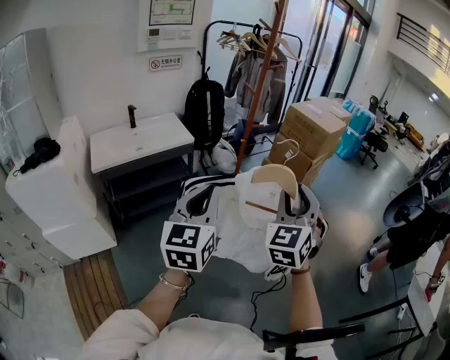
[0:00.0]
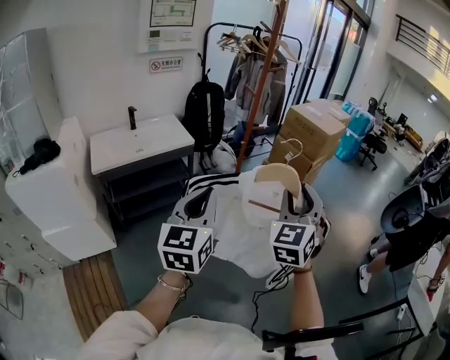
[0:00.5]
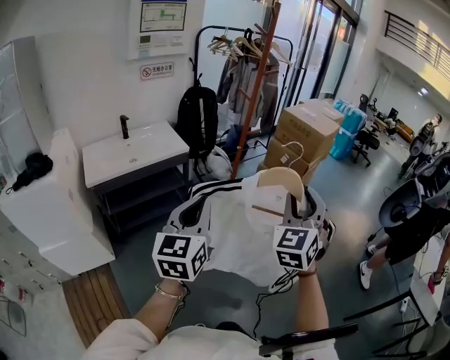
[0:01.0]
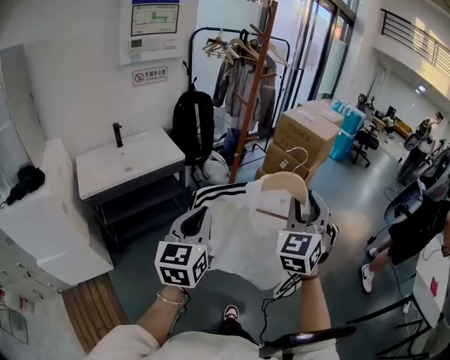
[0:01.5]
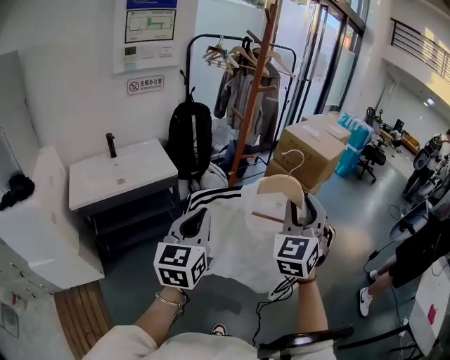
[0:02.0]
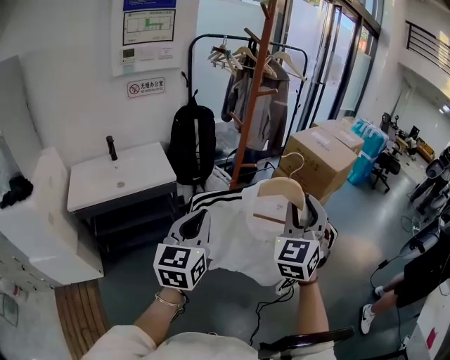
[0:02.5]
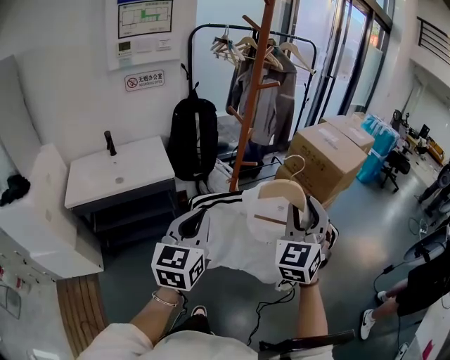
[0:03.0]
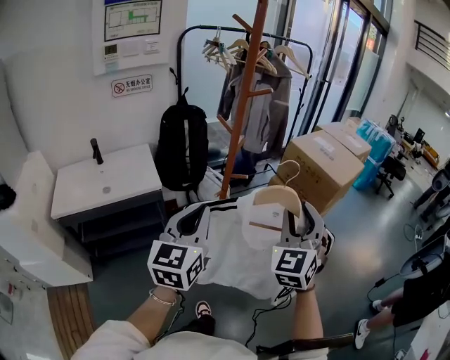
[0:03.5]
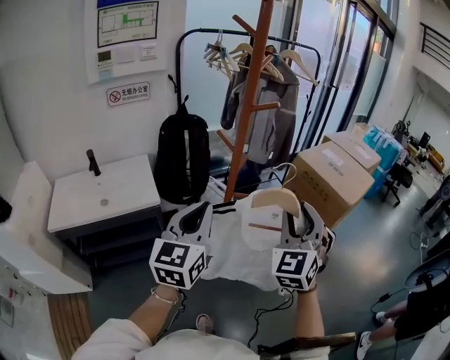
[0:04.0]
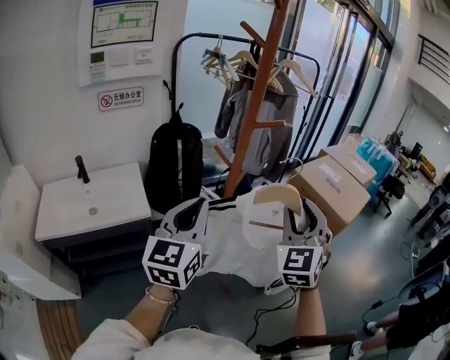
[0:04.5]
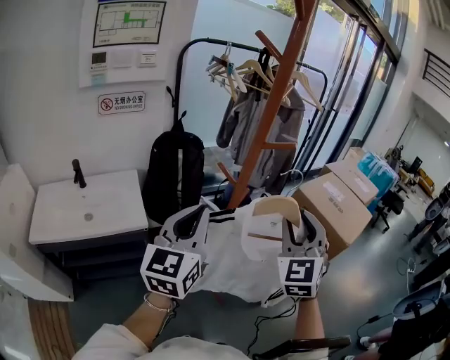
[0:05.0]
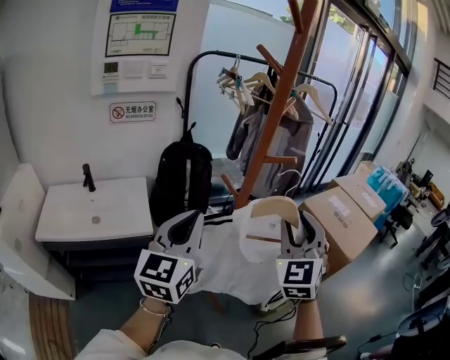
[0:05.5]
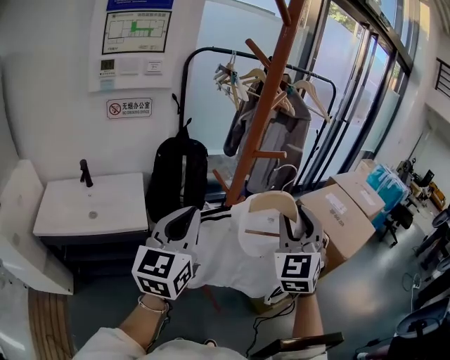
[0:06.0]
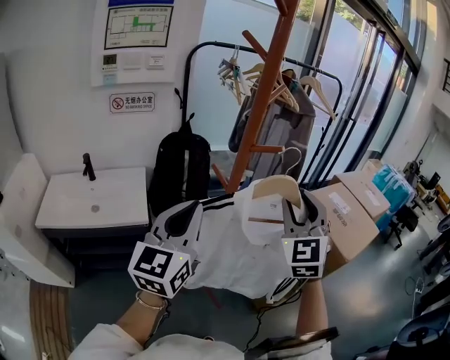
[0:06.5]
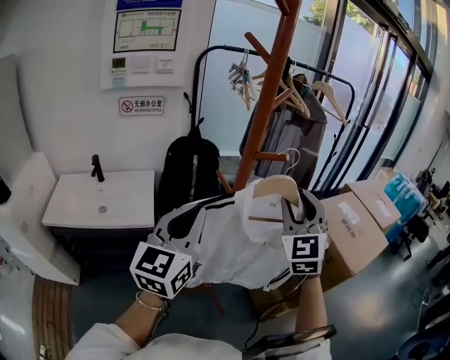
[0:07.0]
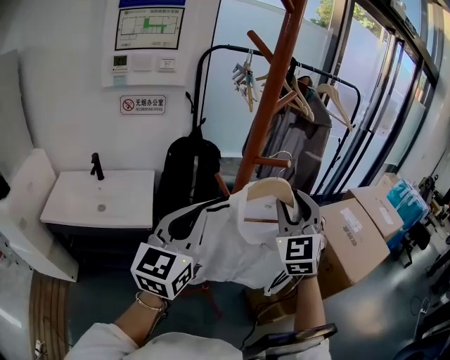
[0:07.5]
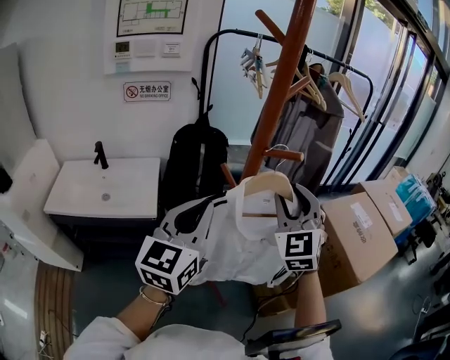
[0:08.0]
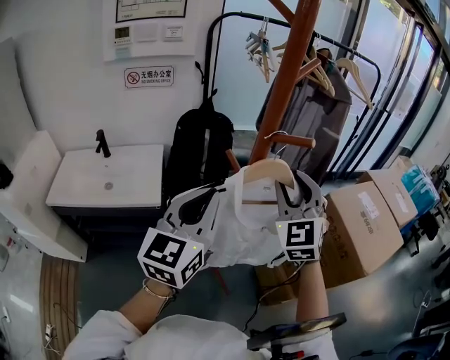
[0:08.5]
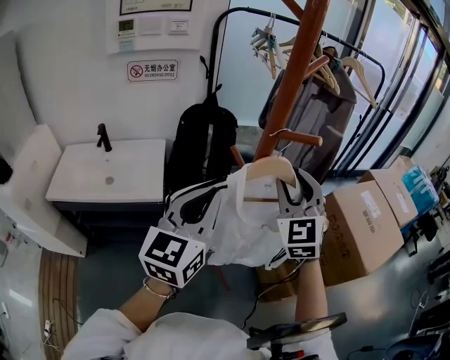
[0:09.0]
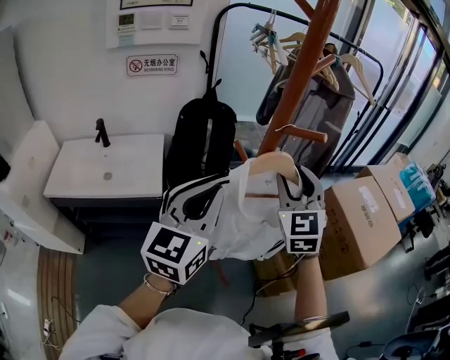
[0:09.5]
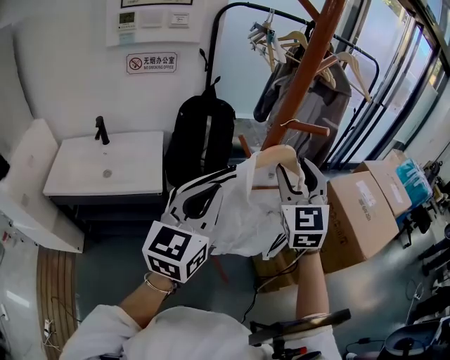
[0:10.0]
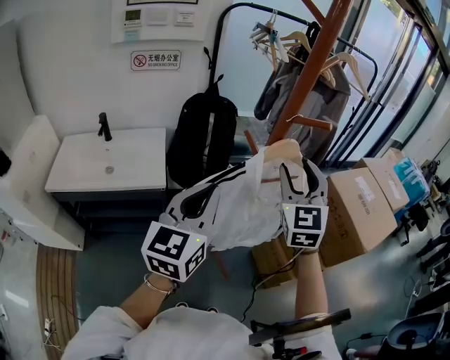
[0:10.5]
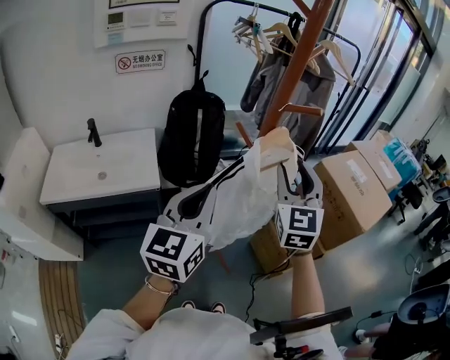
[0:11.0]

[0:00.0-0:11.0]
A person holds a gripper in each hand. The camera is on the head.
0:00.0 to 0:02.0: Both grippers travel together forward, some 20 cm.
0:02.0 to 0:03.5: The grippers both shift forward by approximately 20 cm.
0:03.5 to 0:05.5: Both grippers move forward, approximately 20 cm.
0:05.5 to 0:07.5: The left gripper shifts about 5 cm to the right. Meanwhile the right gripper moves forward, about 10 cm.
0:07.5 to 0:09.0: The right gripper is displaced to the left by about 5 cm.
0:09.0 to 0:11.0: The two grippers go roughly 5 cm backward.

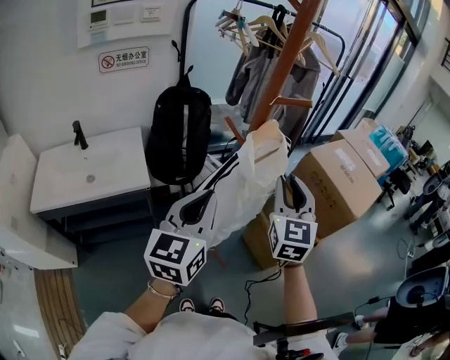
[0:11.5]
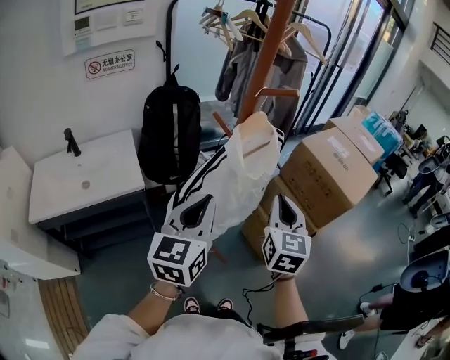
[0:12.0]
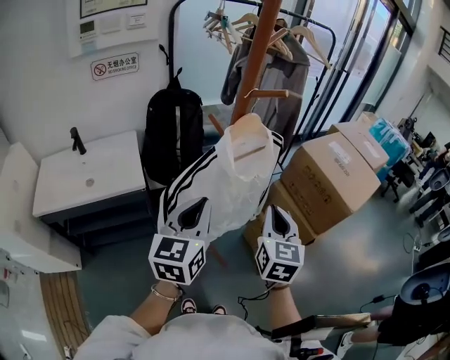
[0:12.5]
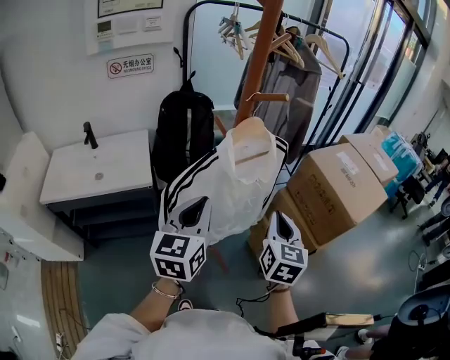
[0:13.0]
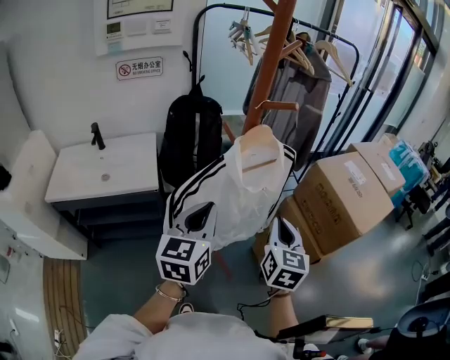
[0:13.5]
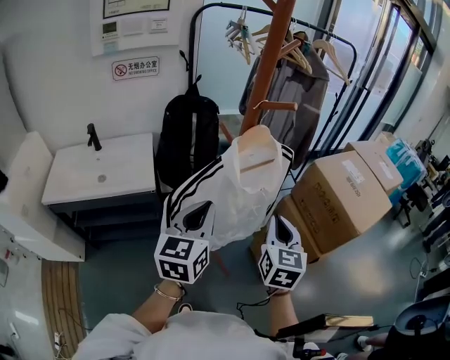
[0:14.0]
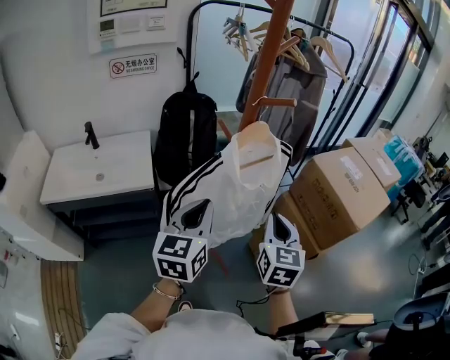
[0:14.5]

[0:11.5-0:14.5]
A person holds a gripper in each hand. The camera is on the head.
0:11.5 to 0:13.0: The left gripper changes place by some 5 cm; the right gripper moves downward and to the right, about 10 cm, and turns by roughly 20 degrees.
0:13.0 to 0:14.5: The grippers stay close to where they were, moving slightly.

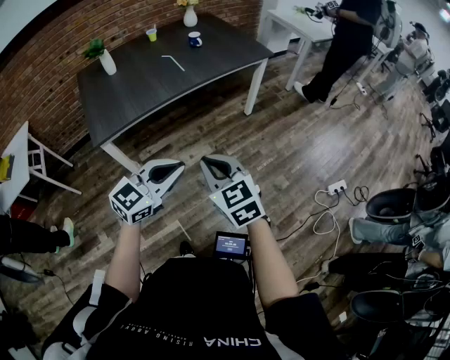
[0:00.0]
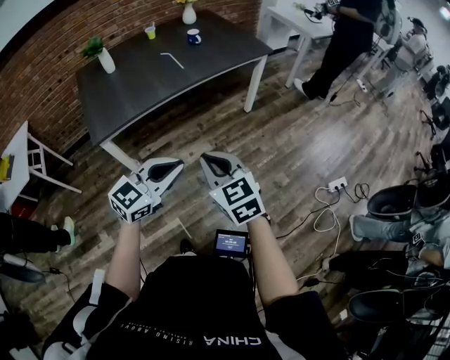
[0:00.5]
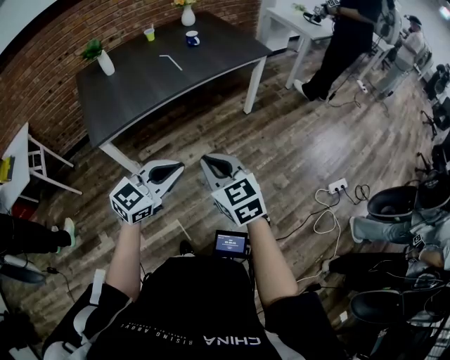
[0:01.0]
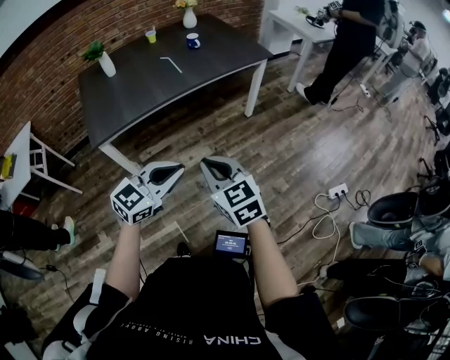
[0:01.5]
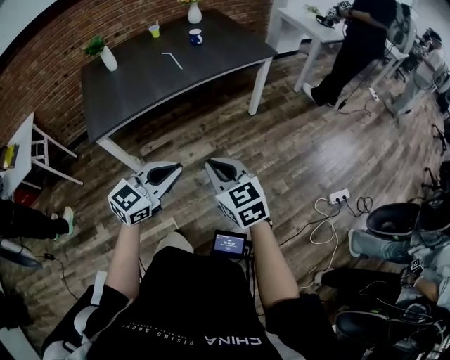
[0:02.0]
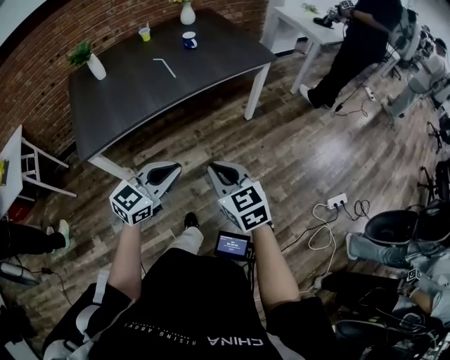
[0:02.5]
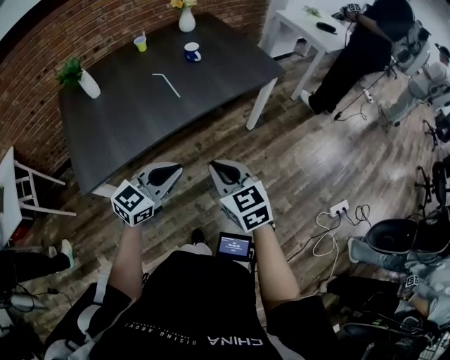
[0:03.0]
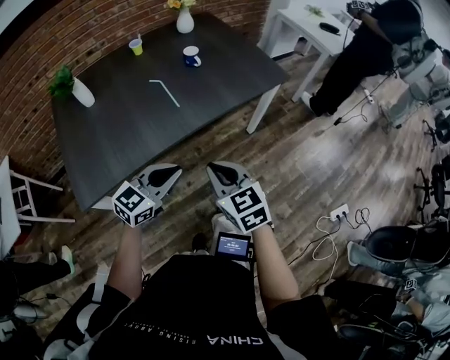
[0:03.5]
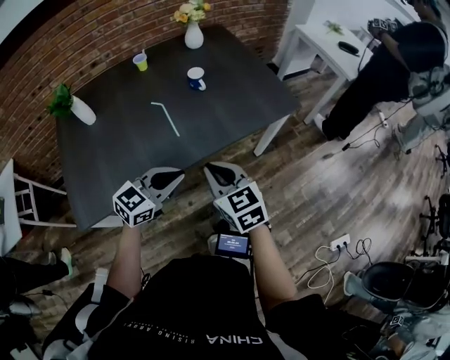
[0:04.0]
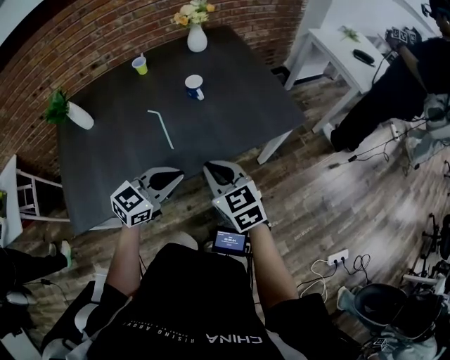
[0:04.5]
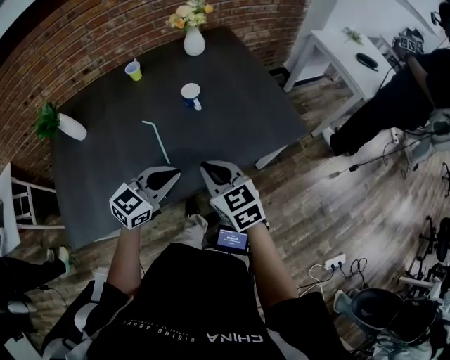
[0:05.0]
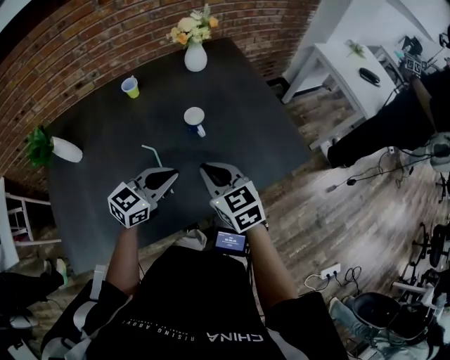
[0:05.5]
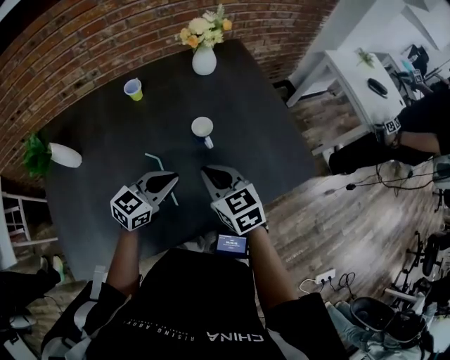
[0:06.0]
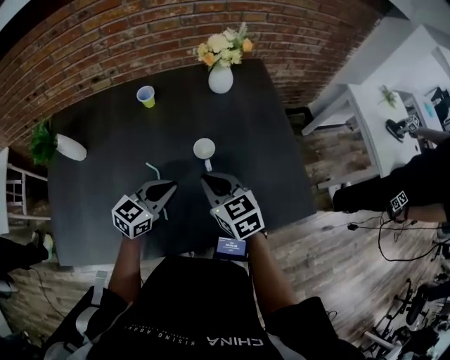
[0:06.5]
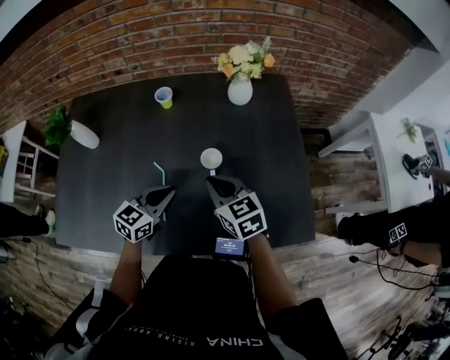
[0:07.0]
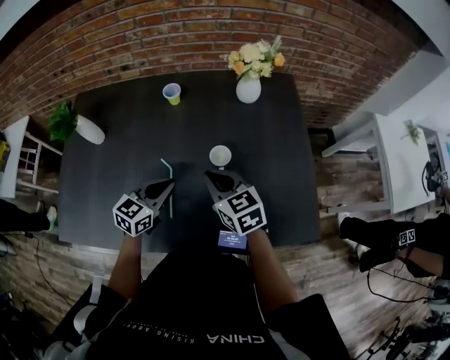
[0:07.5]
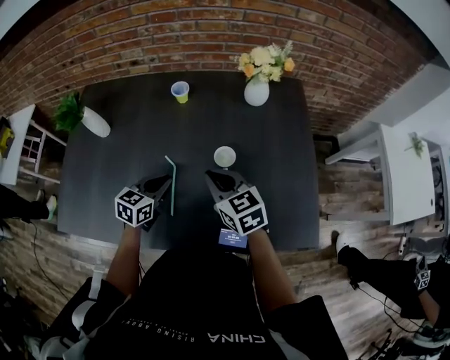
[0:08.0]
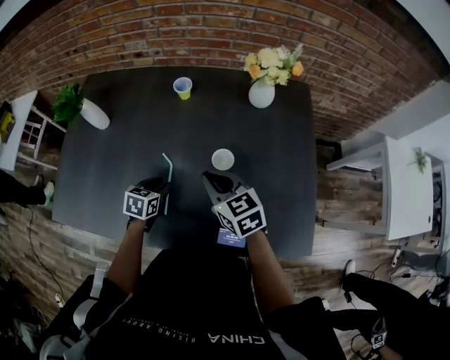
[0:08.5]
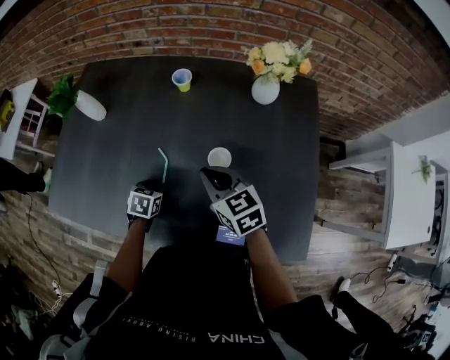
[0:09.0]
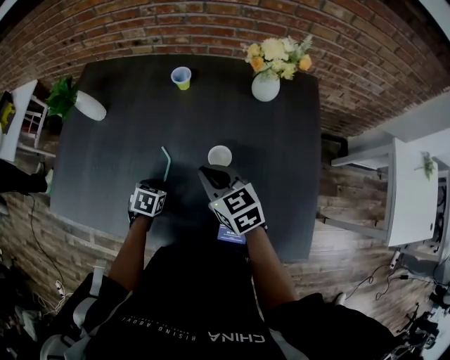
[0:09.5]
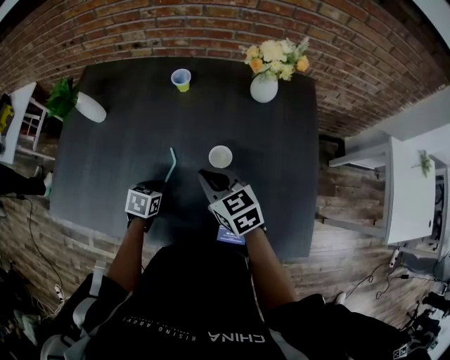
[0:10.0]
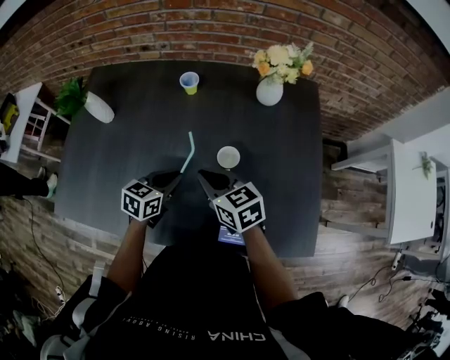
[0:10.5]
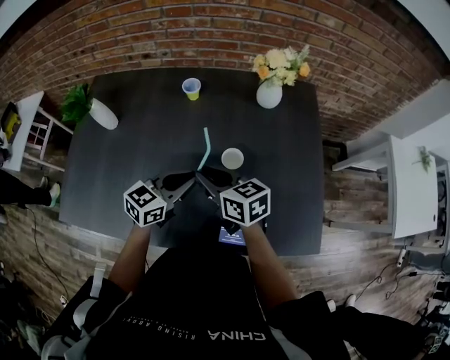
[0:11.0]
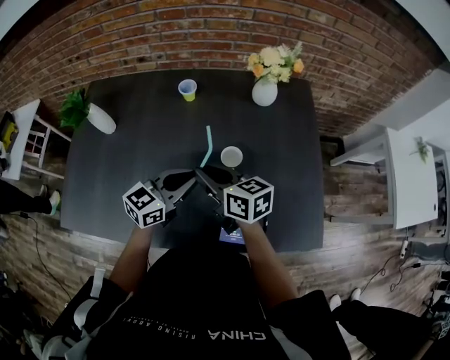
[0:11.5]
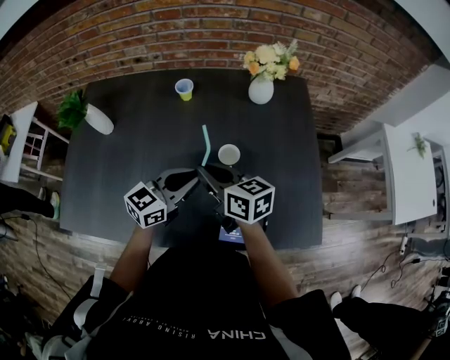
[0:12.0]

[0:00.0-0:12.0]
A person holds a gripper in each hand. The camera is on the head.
0:00.0 to 0:02.0: Both grippers move to the right, about 5 cm.
0:02.0 to 0:04.0: Both grippers are carried forward, about 50 cm.
0:04.0 to 0:06.0: The grippers both shift forward by approximately 30 cm.
0:06.0 to 0:08.0: The right gripper shifts by roughly 5 cm, and rotates approximately 20 degrees; the left gripper ends up roughly 10 cm from where it was, and turns by some 40 degrees.
0:08.0 to 0:10.0: The left gripper is displaced downward by roughly 10 cm, and swivels roughly 30 degrees.
0:10.0 to 0:12.0: The left gripper moves upward and to the right, some 25 cm, and angles its fingers upward, by some 50 degrees. The right gripper goes approximately 5 cm upward, and changes its angle by roughly 30 degrees.

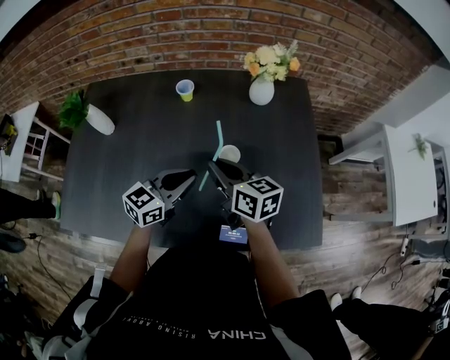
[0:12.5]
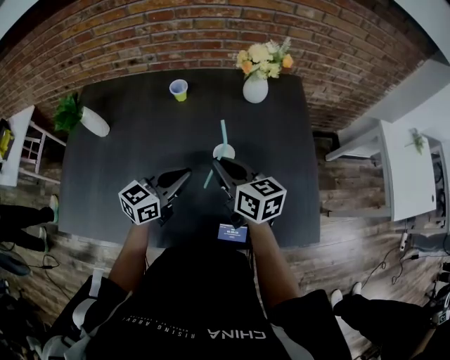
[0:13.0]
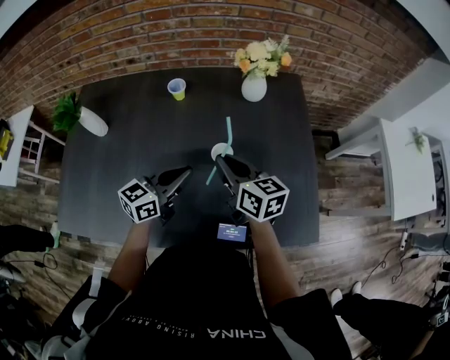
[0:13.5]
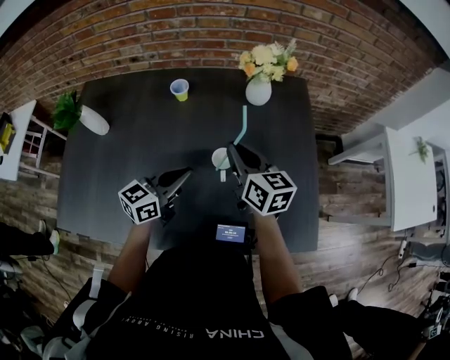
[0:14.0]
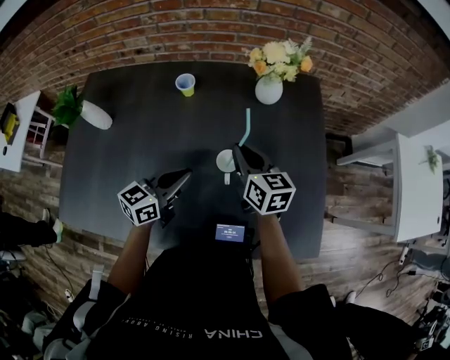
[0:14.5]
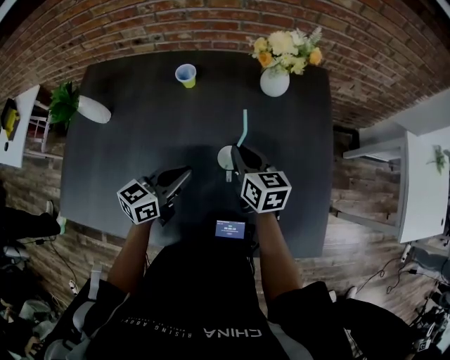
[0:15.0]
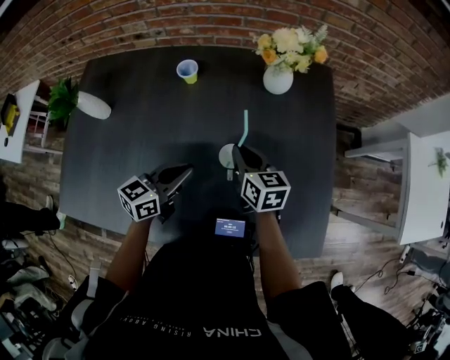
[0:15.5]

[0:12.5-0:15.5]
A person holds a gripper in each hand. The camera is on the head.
0:12.5 to 0:14.0: The right gripper is displaced to the right and forward by roughly 10 cm.
0:14.0 to 0:15.5: The right gripper goes about 10 cm downward. The left gripper changes place by about 5 cm.
